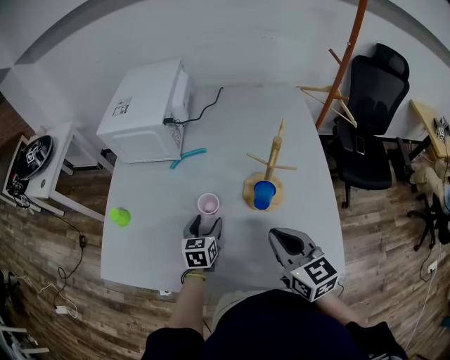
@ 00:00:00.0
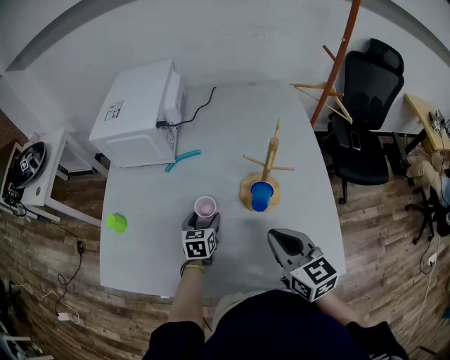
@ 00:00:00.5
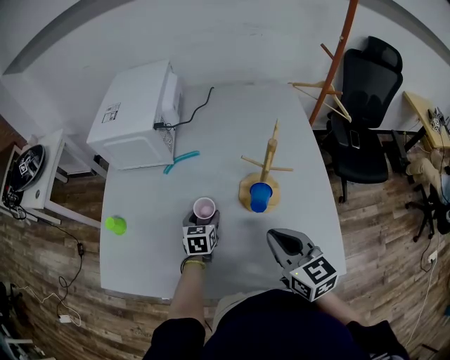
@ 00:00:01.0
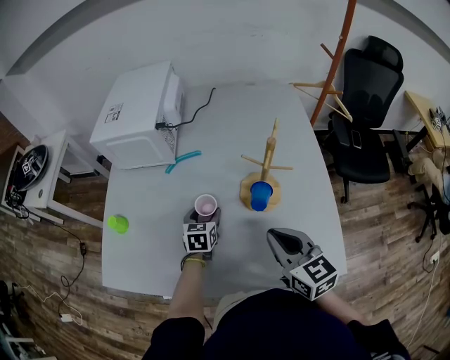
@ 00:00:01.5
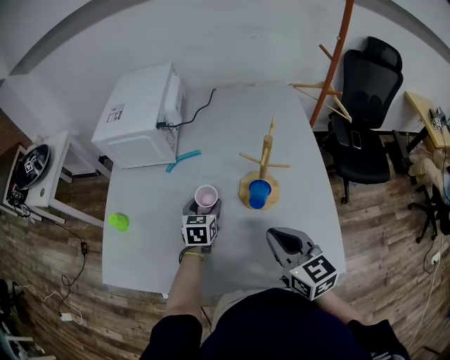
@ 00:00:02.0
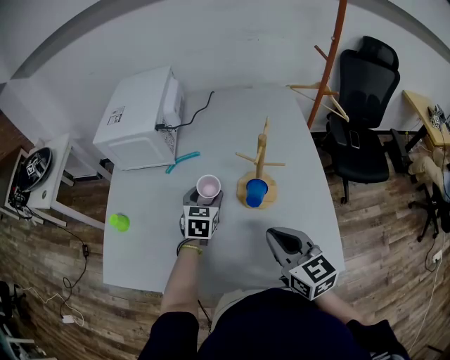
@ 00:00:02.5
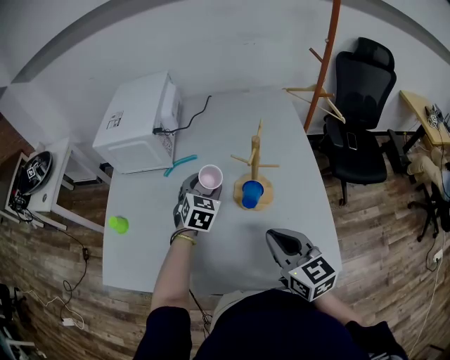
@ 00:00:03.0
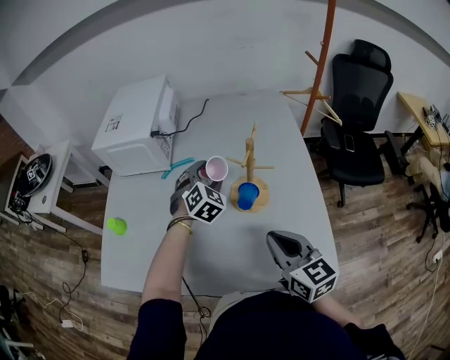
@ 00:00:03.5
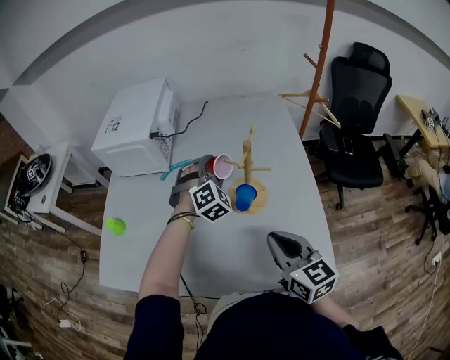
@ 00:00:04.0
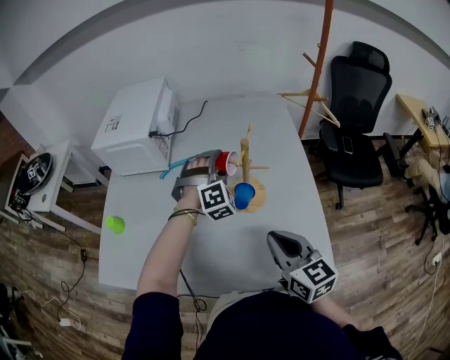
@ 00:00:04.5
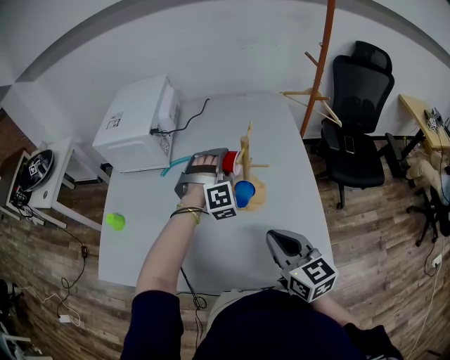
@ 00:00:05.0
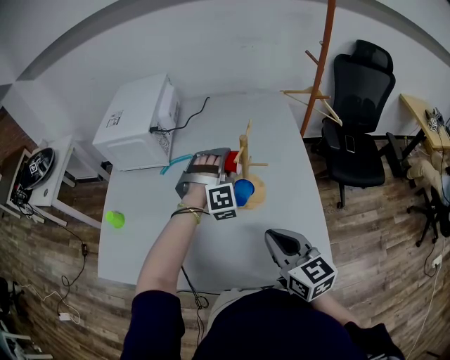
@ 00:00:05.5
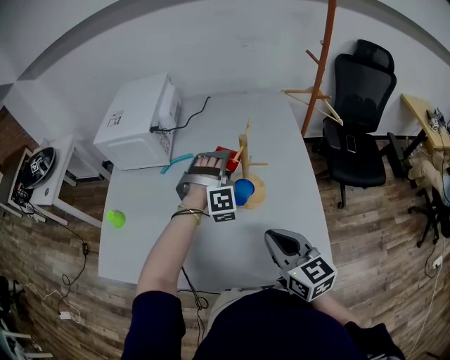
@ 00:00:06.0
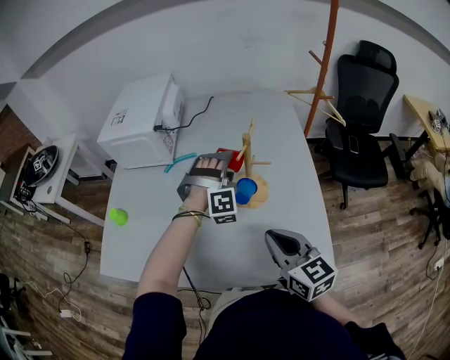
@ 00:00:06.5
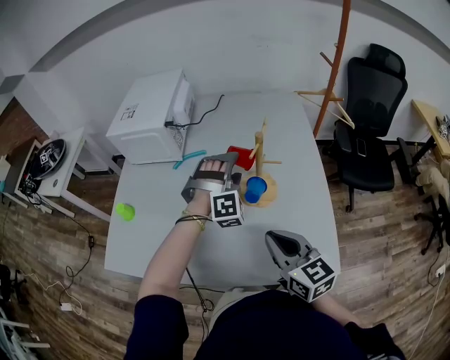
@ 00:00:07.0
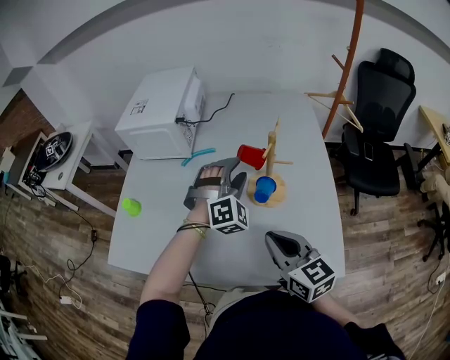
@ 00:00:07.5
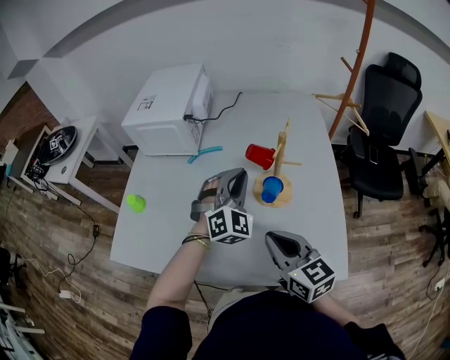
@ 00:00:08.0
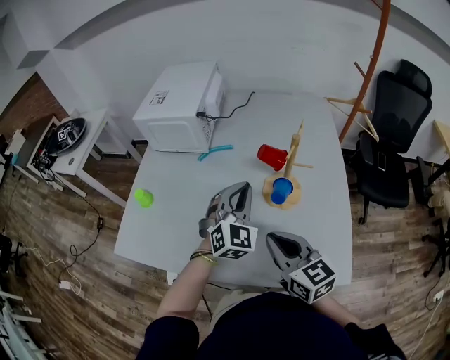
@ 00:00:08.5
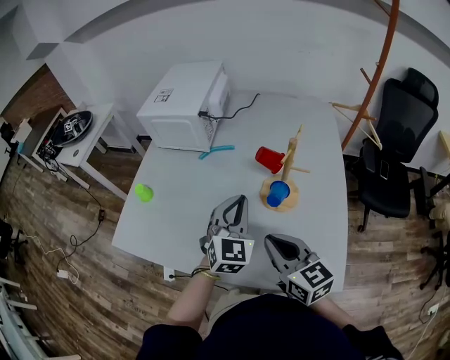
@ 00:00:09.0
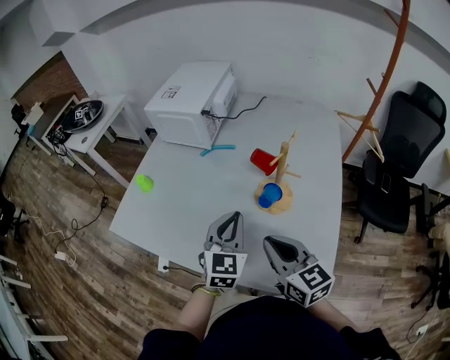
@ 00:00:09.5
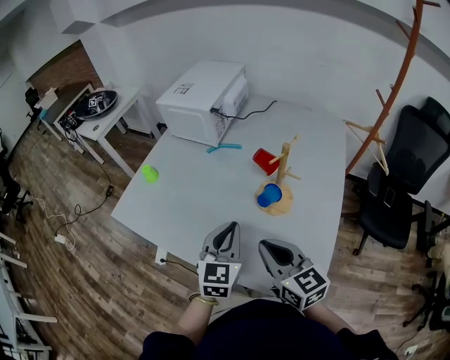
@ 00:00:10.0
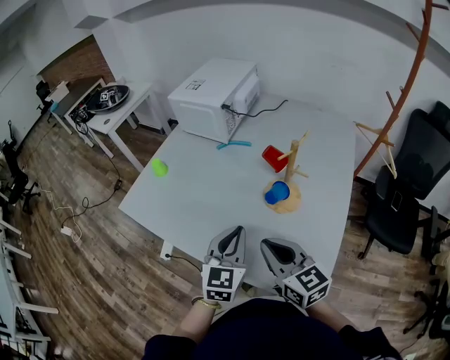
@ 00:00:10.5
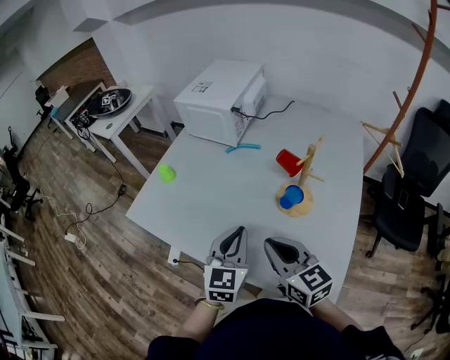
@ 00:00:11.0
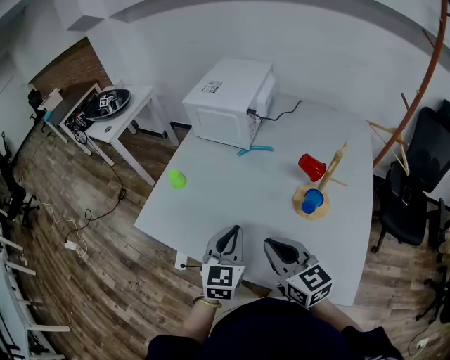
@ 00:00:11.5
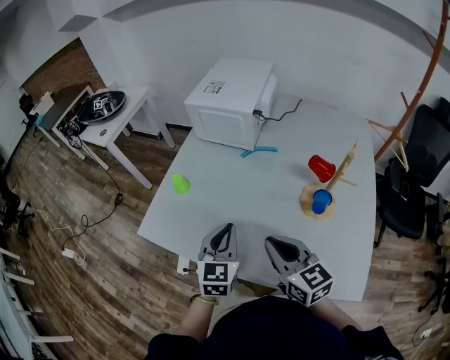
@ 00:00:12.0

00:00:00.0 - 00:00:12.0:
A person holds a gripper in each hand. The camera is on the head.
00:00:00.0 - 00:00:02.0: The left gripper heads forward, covering about 5 cm.
00:00:02.0 - 00:00:04.0: The left gripper travels upward, to the right and forward by approximately 15 cm, and rotates around the line of its fingers by some 60 degrees, clockwise from behind. Meanwhile the right gripper changes place by approximately 5 cm.
00:00:04.0 - 00:00:06.0: The left gripper shifts by about 5 cm, and changes its angle by about 30 degrees.
00:00:06.0 - 00:00:08.0: The right gripper goes some 5 cm to the left. The left gripper moves to the left and backward, roughly 10 cm, rotates approximately 40 degrees, and closes.
00:00:08.0 - 00:00:10.0: The left gripper heads backward, covering roughly 15 cm, and twists some 50 degrees counterclockwise, seen from behind.
00:00:10.0 - 00:00:12.0: The two grippers go some 20 cm to the left and forward.

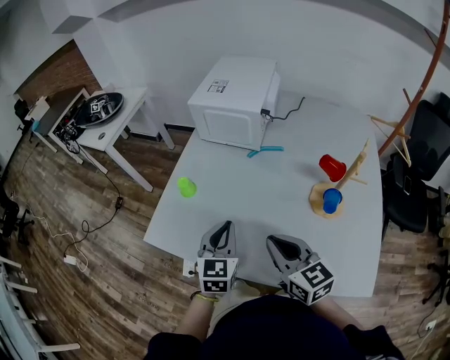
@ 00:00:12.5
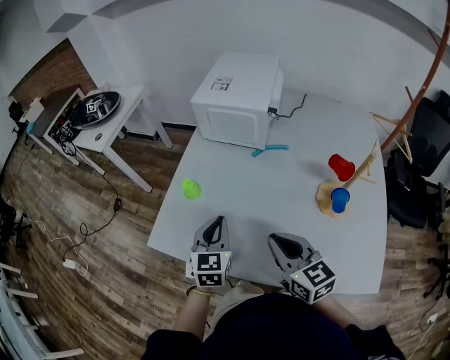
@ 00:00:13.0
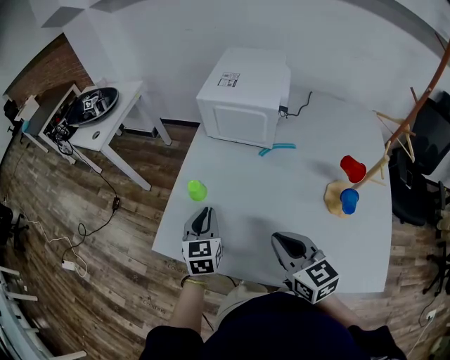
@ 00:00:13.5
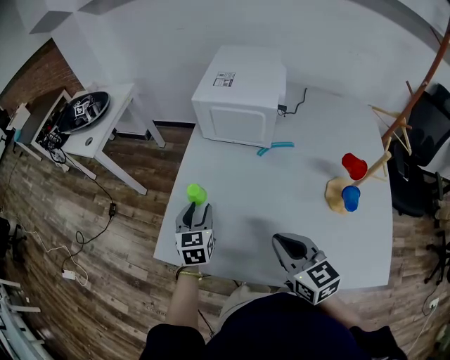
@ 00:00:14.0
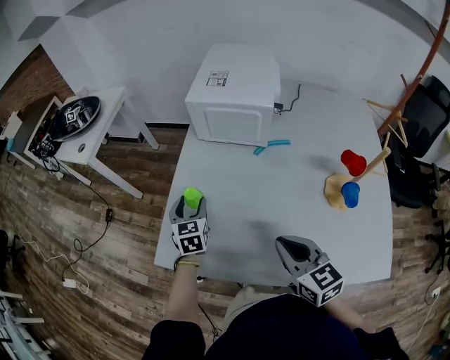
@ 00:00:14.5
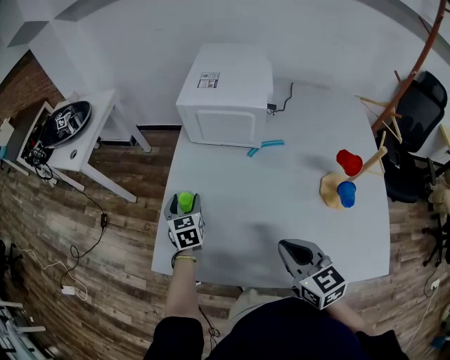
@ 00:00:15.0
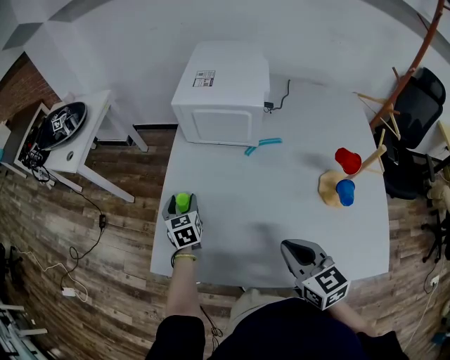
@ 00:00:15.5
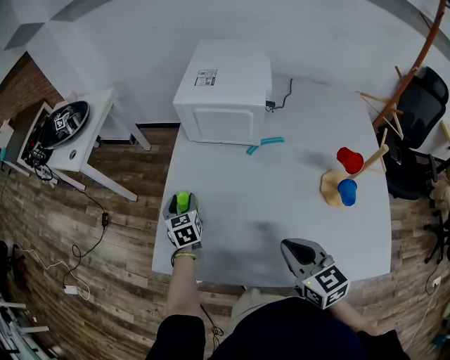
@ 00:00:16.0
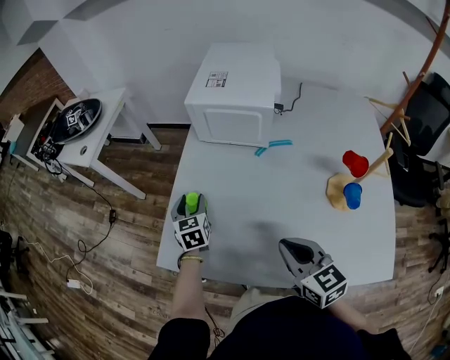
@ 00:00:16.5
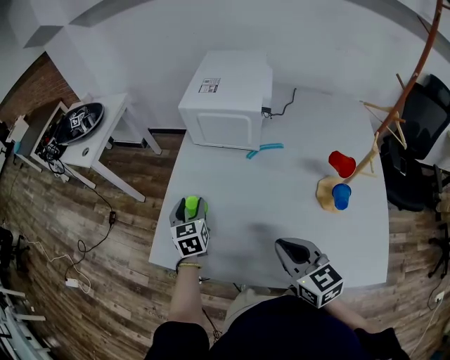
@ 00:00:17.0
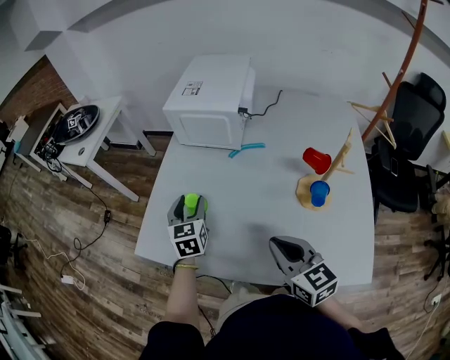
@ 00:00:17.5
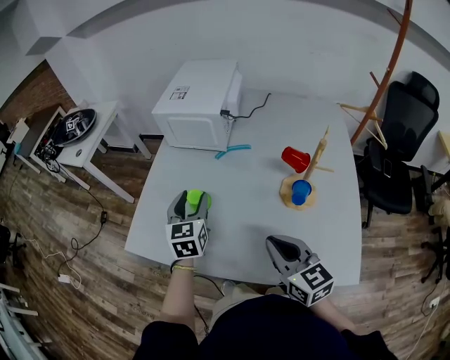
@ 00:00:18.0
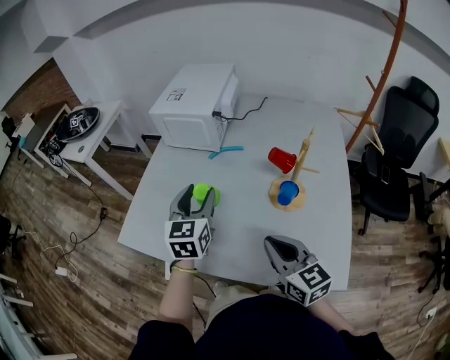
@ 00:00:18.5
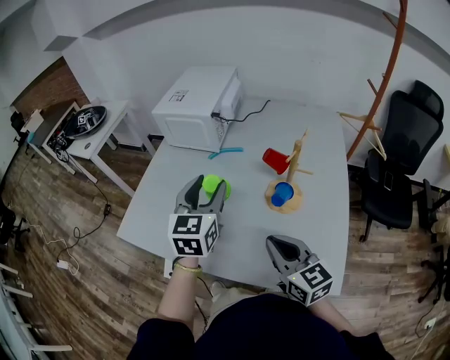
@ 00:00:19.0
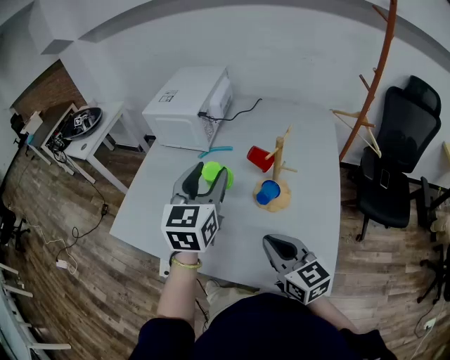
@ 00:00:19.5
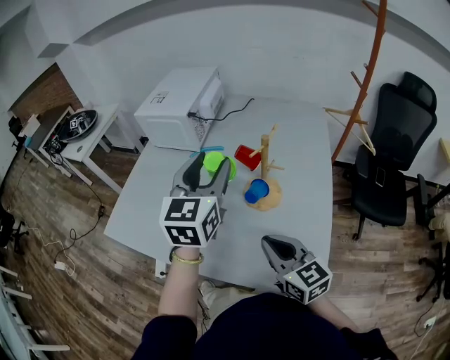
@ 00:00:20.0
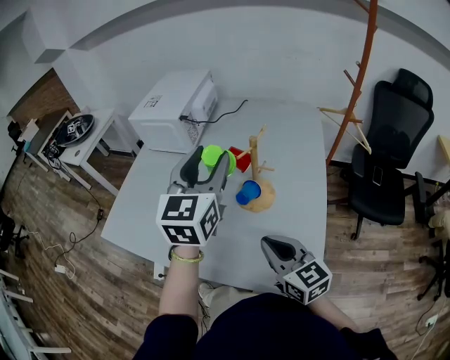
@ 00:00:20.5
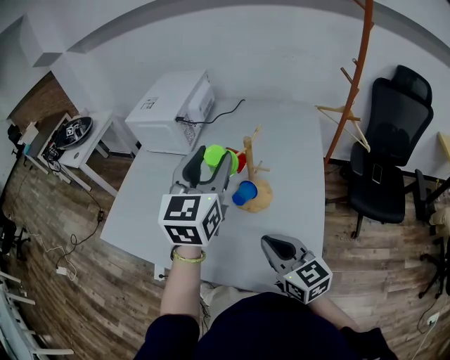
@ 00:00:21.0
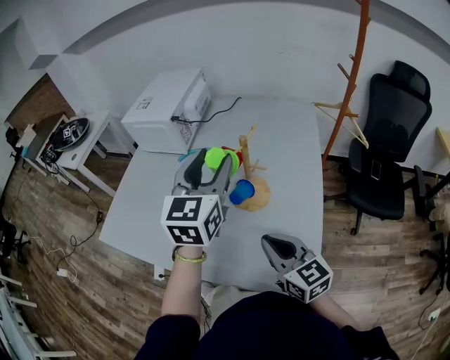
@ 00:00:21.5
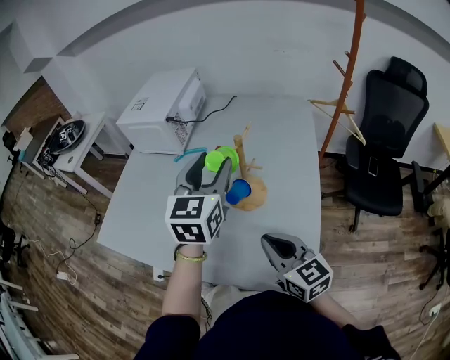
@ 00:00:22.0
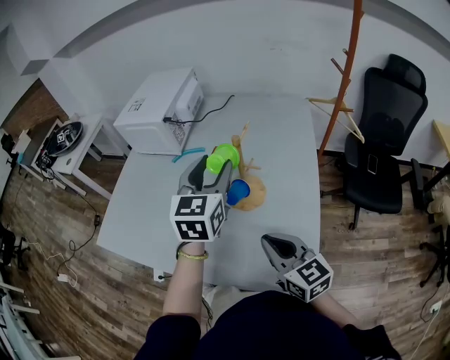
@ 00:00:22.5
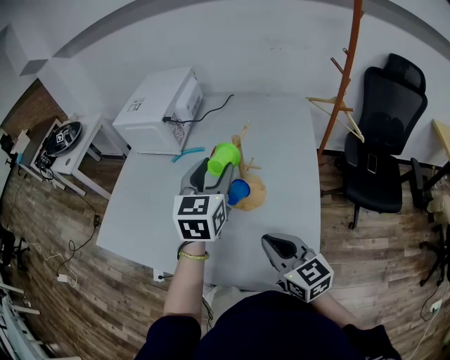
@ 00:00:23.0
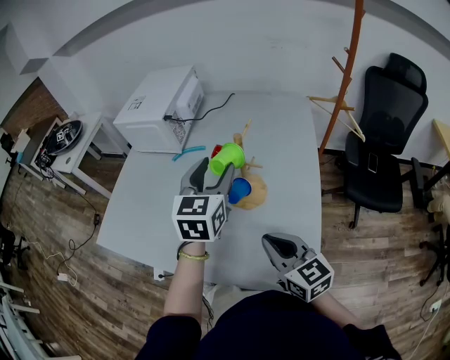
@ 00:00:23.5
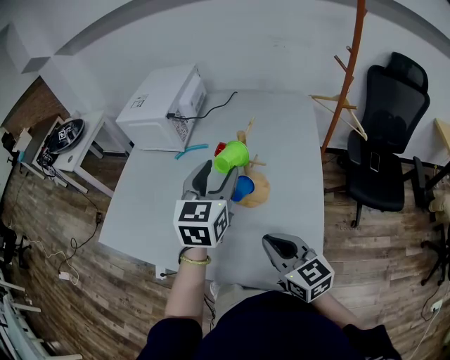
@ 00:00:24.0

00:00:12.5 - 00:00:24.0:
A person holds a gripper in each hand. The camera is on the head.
00:00:12.5 - 00:00:14.5: The left gripper moves forward, to the left and downward, some 25 cm, and opens. The right gripper is displaced to the left and forward by about 10 cm.
00:00:14.5 - 00:00:16.5: The grippers move only a little.
00:00:16.5 - 00:00:18.5: The right gripper heads to the right and backward, covering roughly 20 cm; the left gripper shifts roughly 35 cm to the right, backward and upward.
00:00:18.5 - 00:00:20.0: The right gripper shifts some 10 cm to the right; the left gripper moves to the right and upward, roughly 20 cm.
00:00:20.0 - 00:00:22.0: The grippers both shift to the right by roughly 5 cm.
00:00:22.0 - 00:00:24.0: The grippers move only a little.

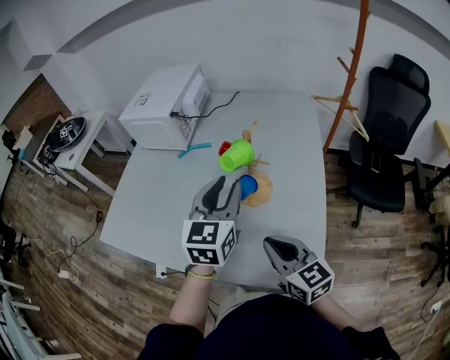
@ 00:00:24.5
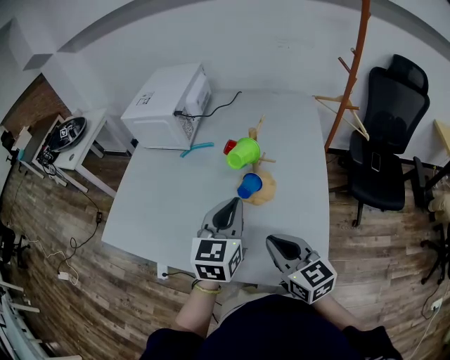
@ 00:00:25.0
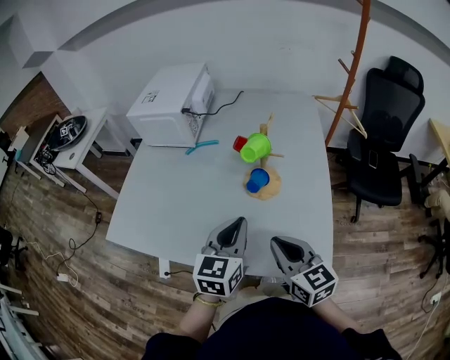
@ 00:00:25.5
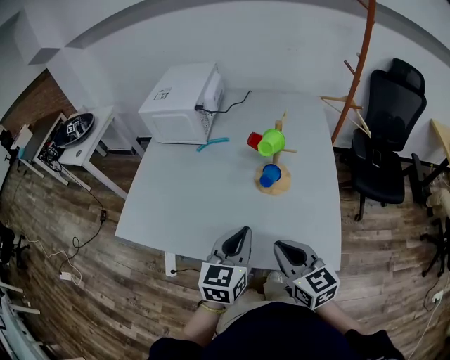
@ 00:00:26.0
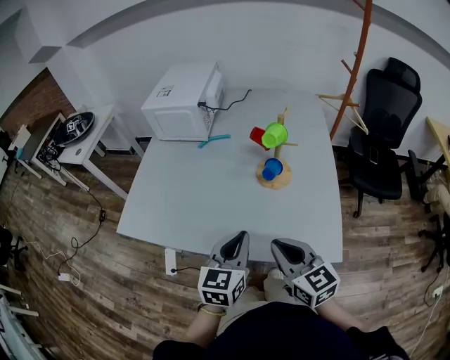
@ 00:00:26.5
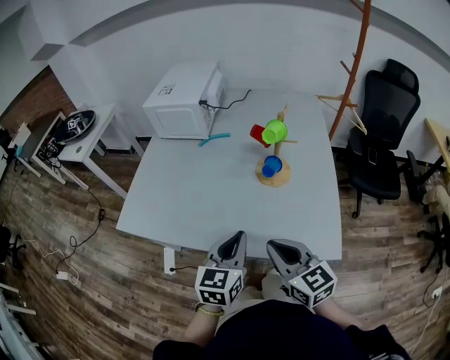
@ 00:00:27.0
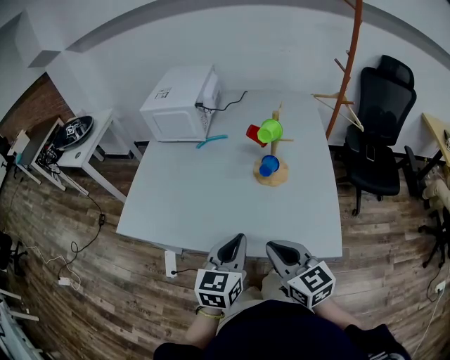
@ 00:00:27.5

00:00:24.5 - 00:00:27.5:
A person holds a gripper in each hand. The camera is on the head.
00:00:24.5 - 00:00:26.0: The left gripper goes roughly 20 cm backward, to the left and downward, and closes its fingers, while the right gripper moves to the left and backward, about 10 cm.
00:00:26.0 - 00:00:27.5: The right gripper moves approximately 5 cm; the left gripper goes about 5 cm backward.
